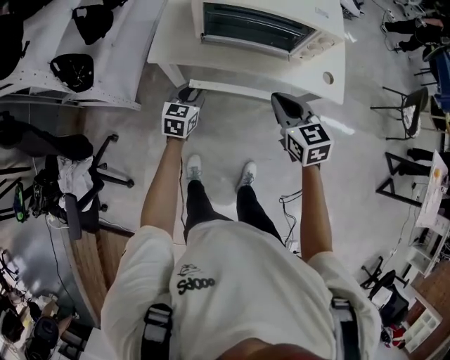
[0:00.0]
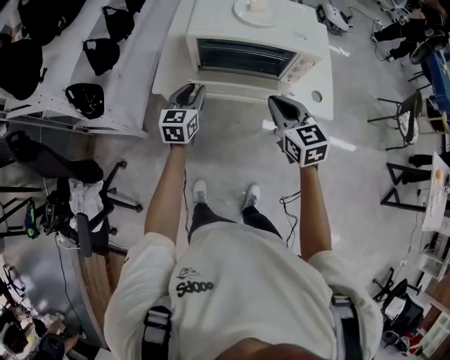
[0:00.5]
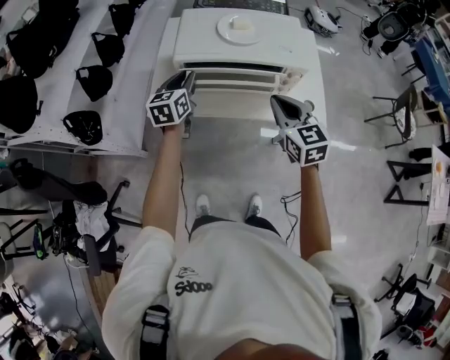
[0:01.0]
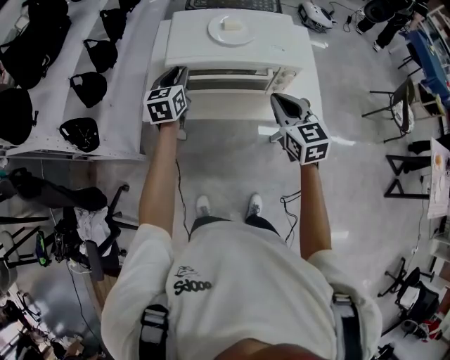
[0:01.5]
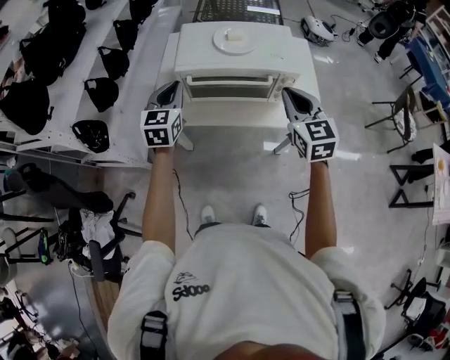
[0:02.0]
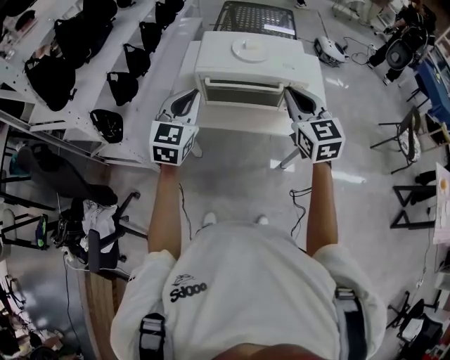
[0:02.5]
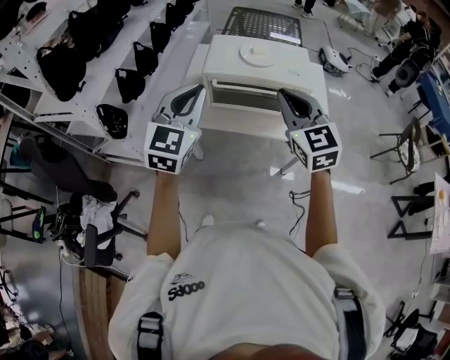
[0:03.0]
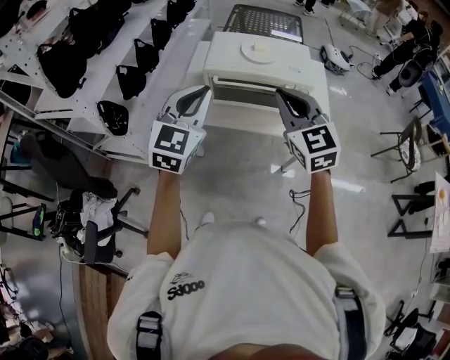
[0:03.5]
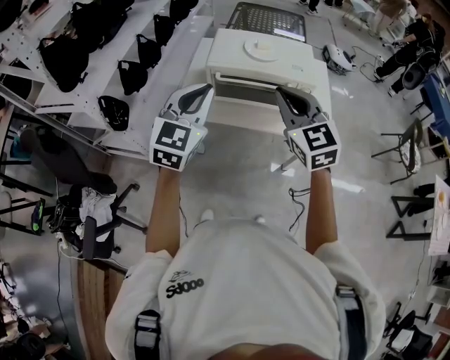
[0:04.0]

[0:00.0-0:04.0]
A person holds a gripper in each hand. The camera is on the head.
0:00.0 to 0:02.0: The left gripper shifts roughly 25 cm upward, turns by about 20 degrees, and closes; the right gripper shifts about 20 cm upward, to the right and forward, and swivels roughly 20 degrees.
0:02.0 to 0:04.0: The left gripper goes some 20 cm backward and upward. The right gripper travels to the left, upward and backward by about 15 cm.

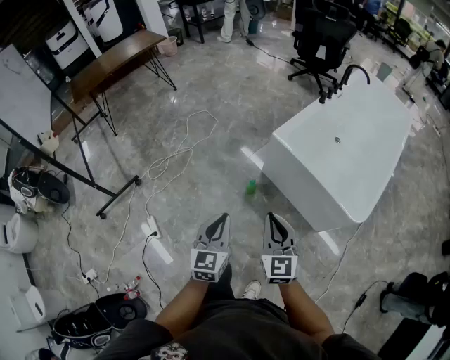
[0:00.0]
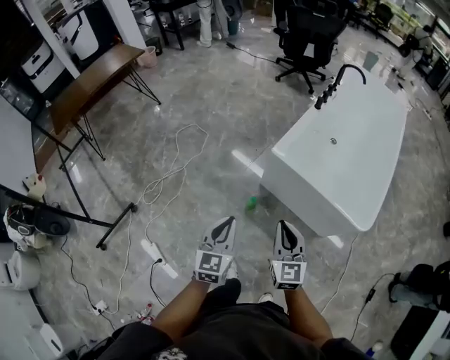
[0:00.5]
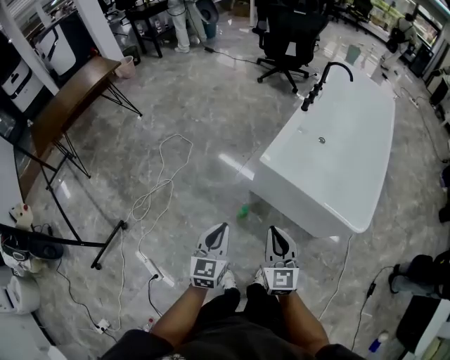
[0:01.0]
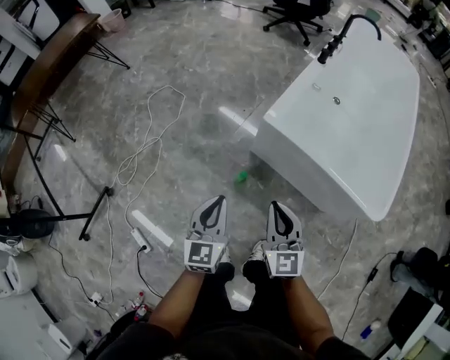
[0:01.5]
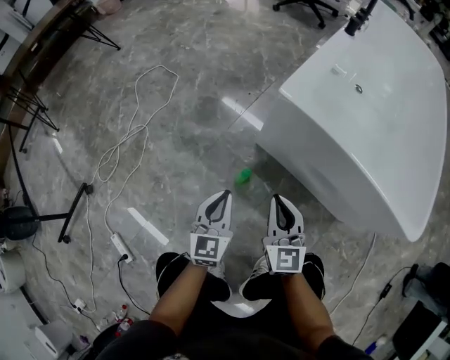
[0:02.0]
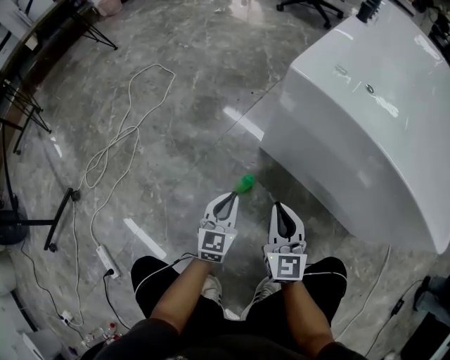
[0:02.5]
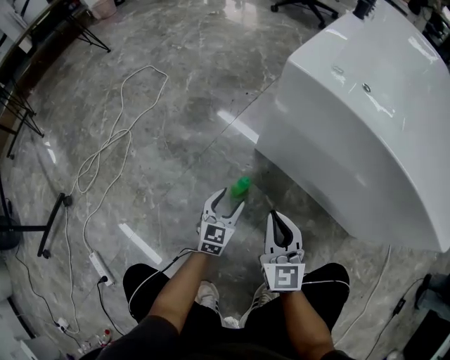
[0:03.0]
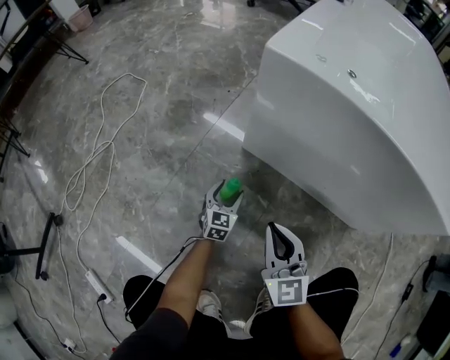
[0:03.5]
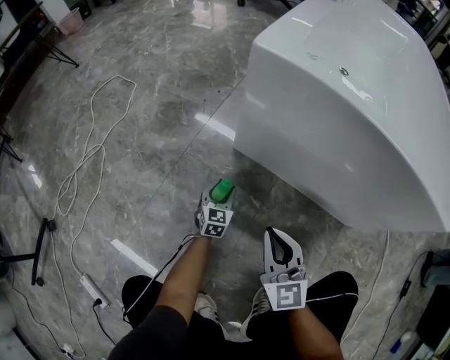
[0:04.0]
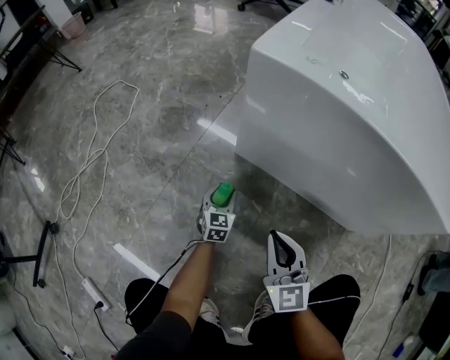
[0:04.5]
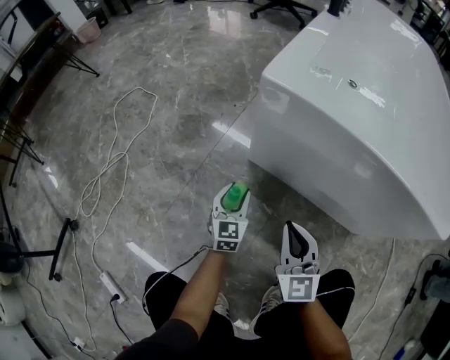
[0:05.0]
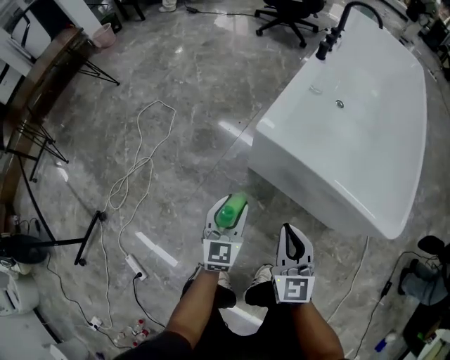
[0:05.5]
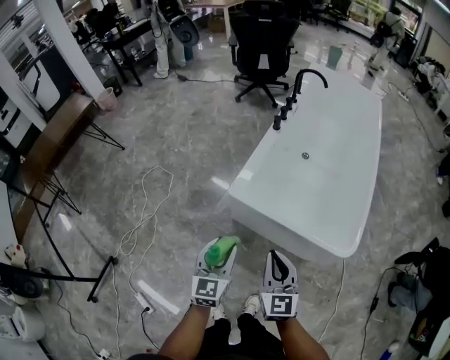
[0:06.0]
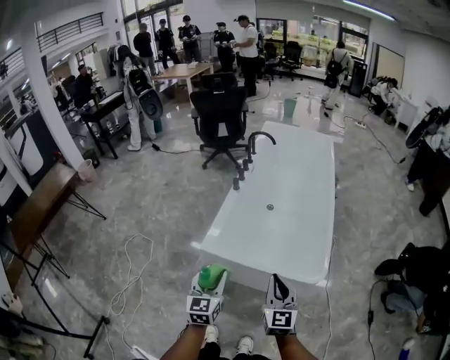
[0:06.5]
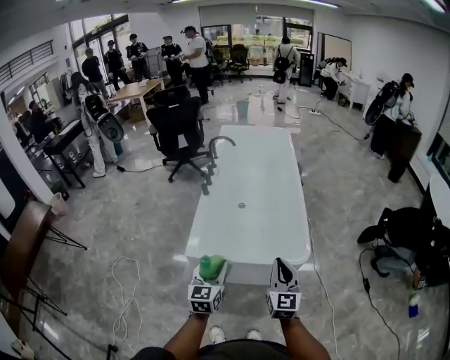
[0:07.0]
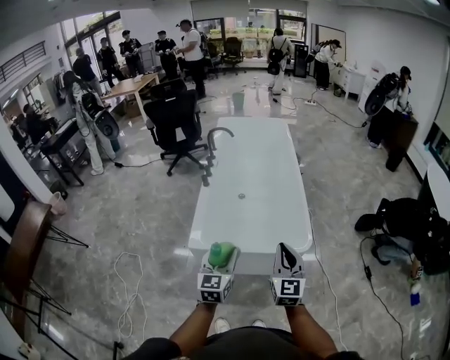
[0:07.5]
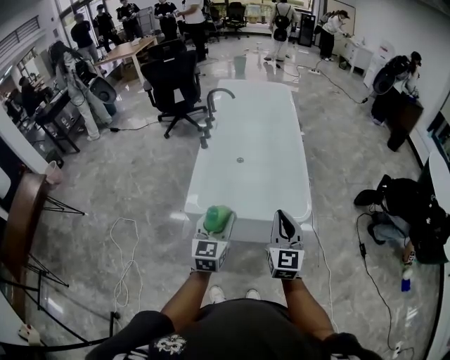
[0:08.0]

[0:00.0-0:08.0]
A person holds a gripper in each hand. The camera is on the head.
0:00.0 to 0:02.0: Both grippers travel together downward and forward, about 50 cm.
0:02.0 to 0:04.0: The right gripper shifts roughly 20 cm downward; the left gripper travels downward by some 40 cm, rotates about 20 degrees, and opens up.
0:04.0 to 0:06.0: Both grippers move upward, roughly 70 cm.
0:06.0 to 0:08.0: The right gripper moves roughly 20 cm, and turns by about 30 degrees. The left gripper shifts some 15 cm upward, and rotates roughly 20 degrees.

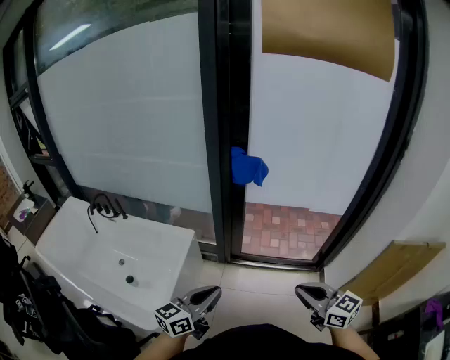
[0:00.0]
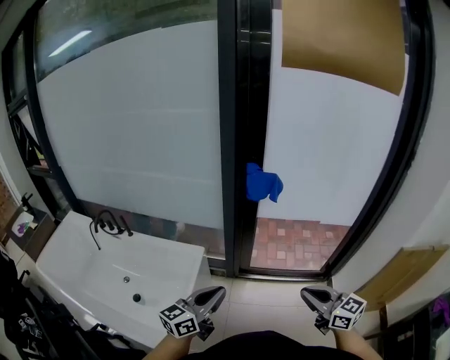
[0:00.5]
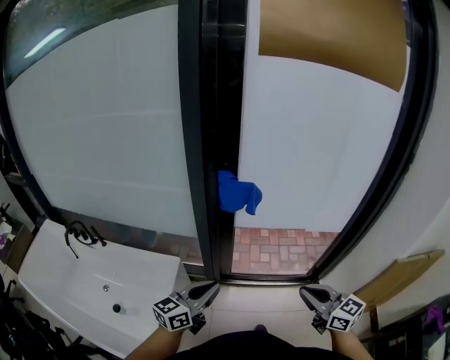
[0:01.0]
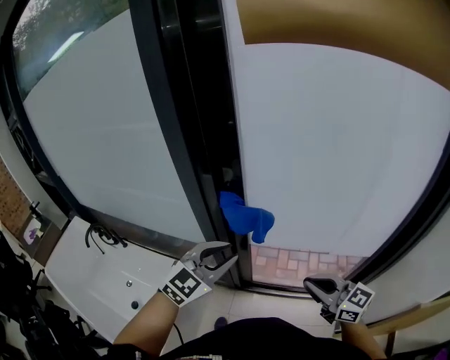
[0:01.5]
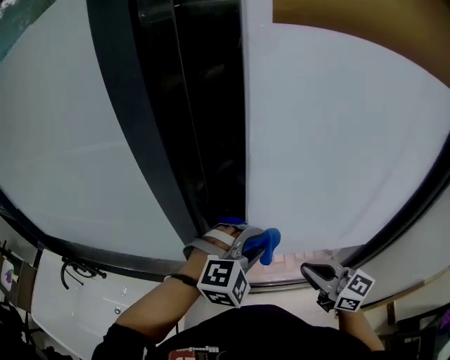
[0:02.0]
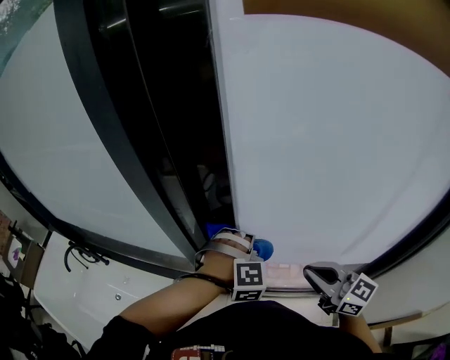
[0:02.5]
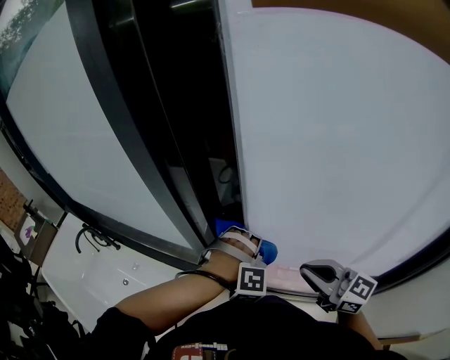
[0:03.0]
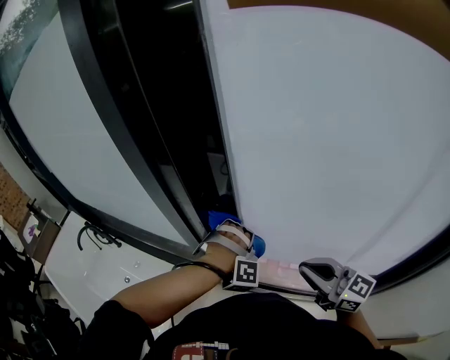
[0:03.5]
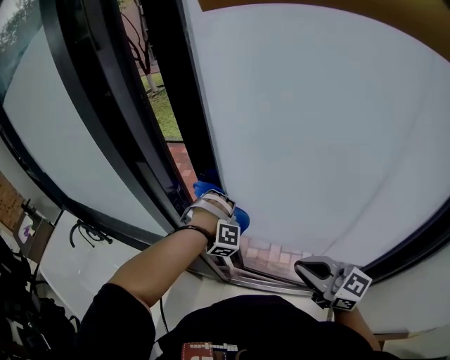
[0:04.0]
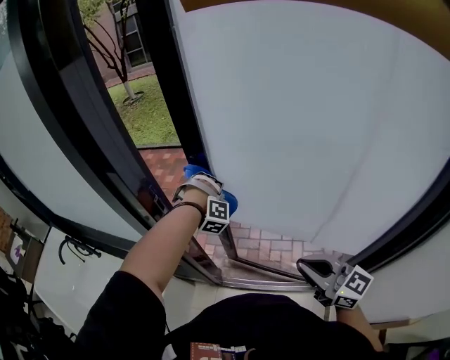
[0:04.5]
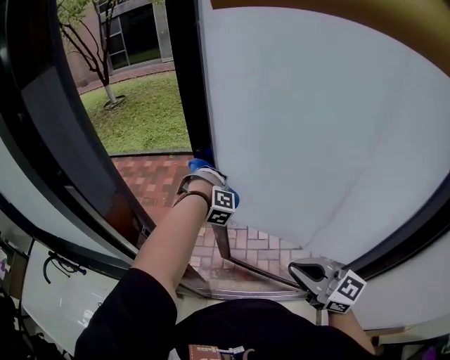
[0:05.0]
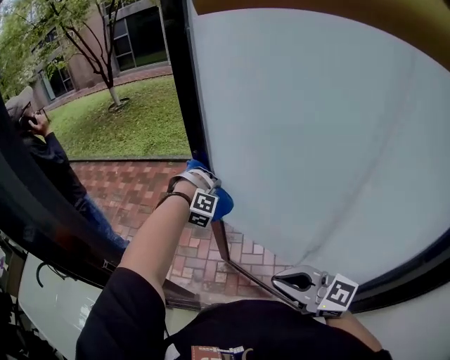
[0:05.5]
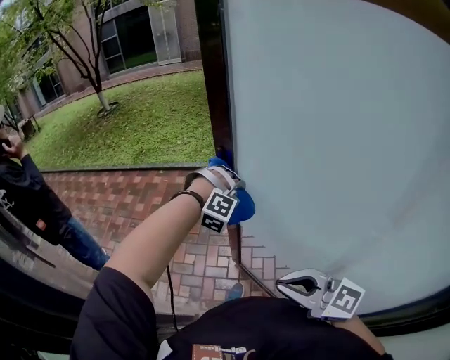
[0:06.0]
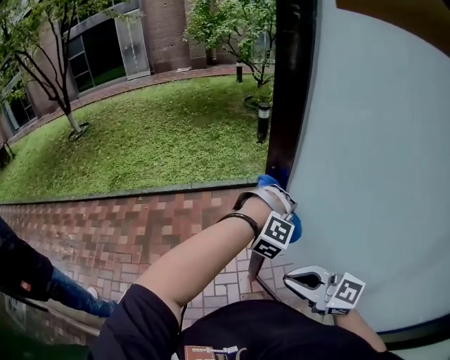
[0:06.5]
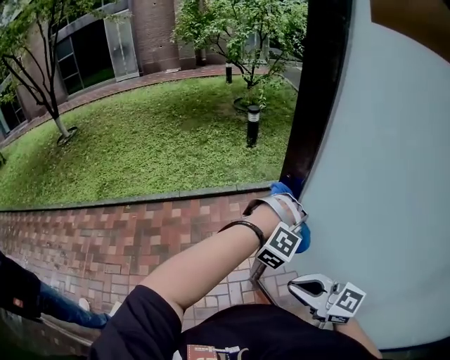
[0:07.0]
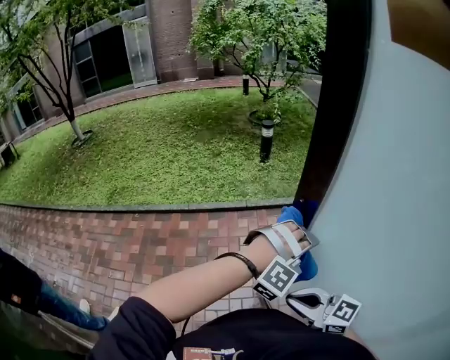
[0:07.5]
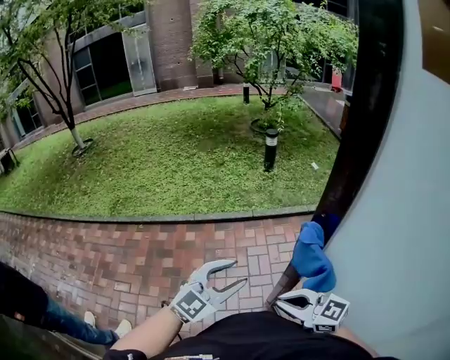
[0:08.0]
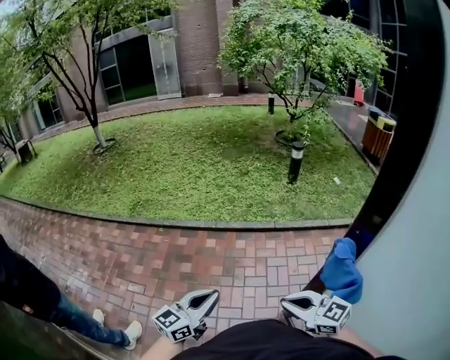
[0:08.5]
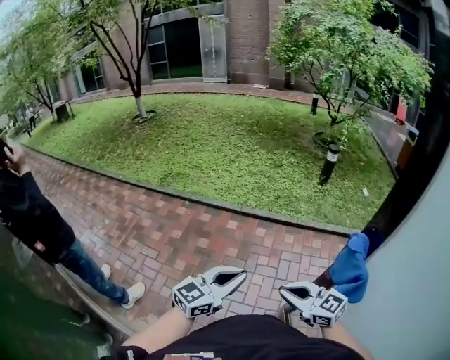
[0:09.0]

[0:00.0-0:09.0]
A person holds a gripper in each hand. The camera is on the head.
0:00.0 to 0:02.0: The two grippers travel together, forward, about 50 cm. The left gripper rotates around the line of its fingers by some 90 degrees, clockwise from behind, and opens.
0:02.0 to 0:04.5: The left gripper shifts by roughly 30 cm, rotates approximately 60 degrees, and closes up. The right gripper changes place by about 15 cm.
0:04.5 to 0:07.0: The pair of grippers is taken about 60 cm. The left gripper rotates some 60 degrees.
0:07.0 to 0:09.0: The right gripper shifts about 20 cm to the left, forward and downward, and swivels some 20 degrees. Meanwhile the left gripper heads to the left, covering about 35 cm, twists about 110 degrees counterclockwise, seen from behind, and opens, then closes again.

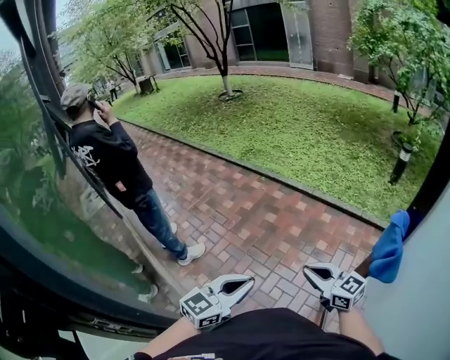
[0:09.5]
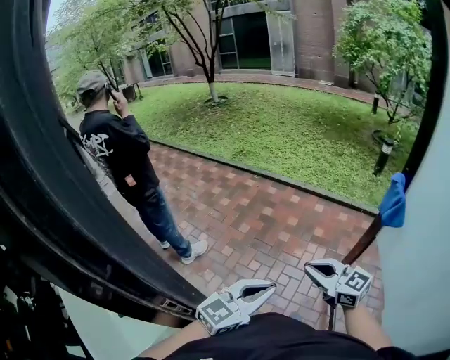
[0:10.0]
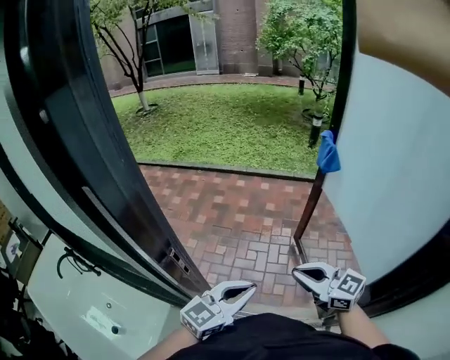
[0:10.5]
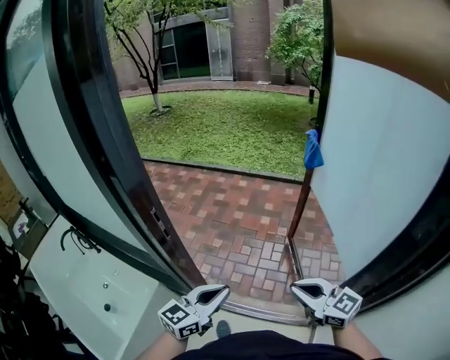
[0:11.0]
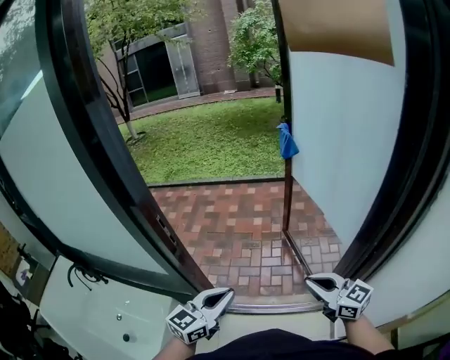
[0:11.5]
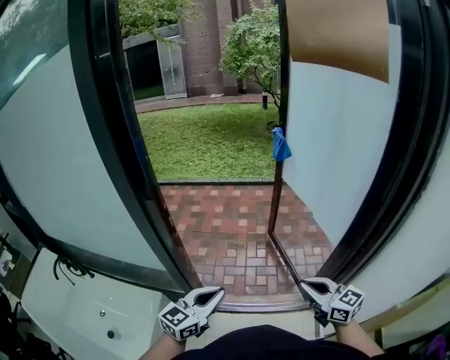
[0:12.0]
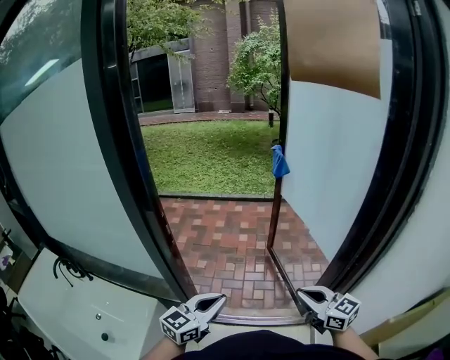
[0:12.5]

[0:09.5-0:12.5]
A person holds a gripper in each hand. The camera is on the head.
0:09.5 to 0:11.0: The two grippers travel together, backward, about 50 cm.
0:11.0 to 0:12.5: Both grippers move backward, approximately 10 cm.

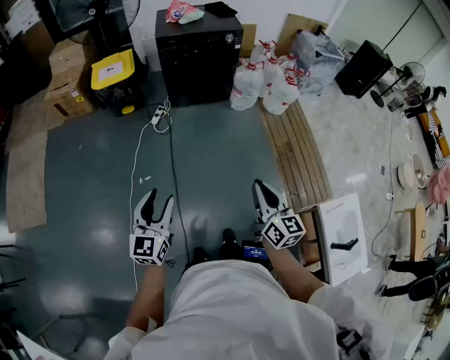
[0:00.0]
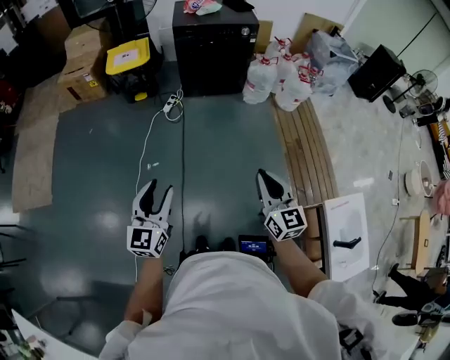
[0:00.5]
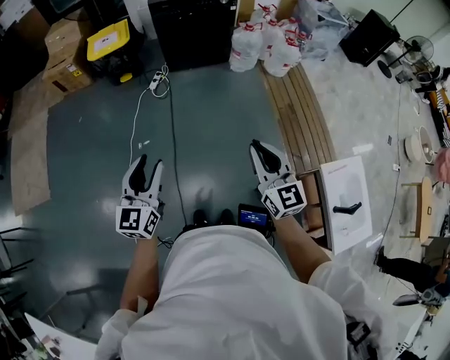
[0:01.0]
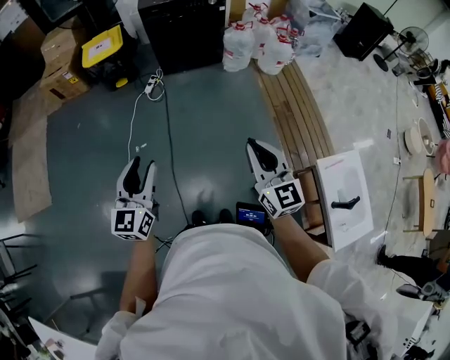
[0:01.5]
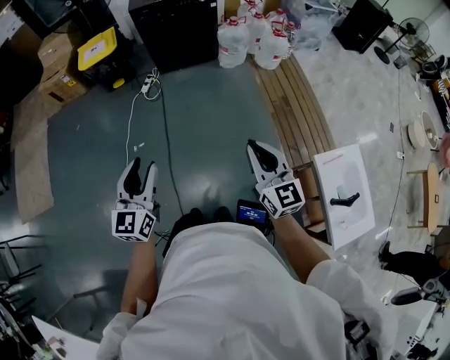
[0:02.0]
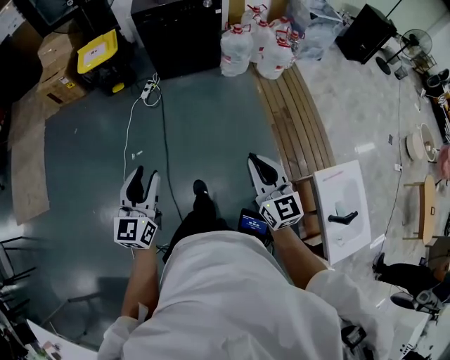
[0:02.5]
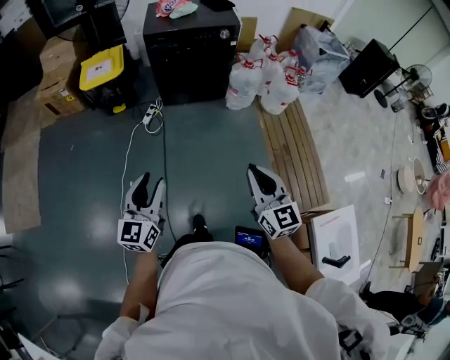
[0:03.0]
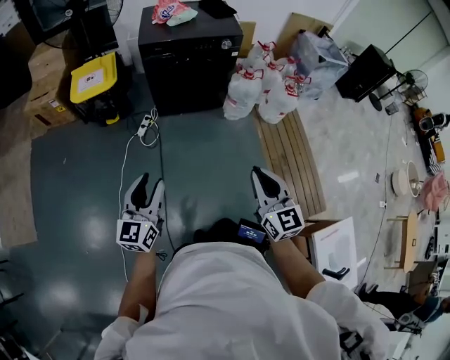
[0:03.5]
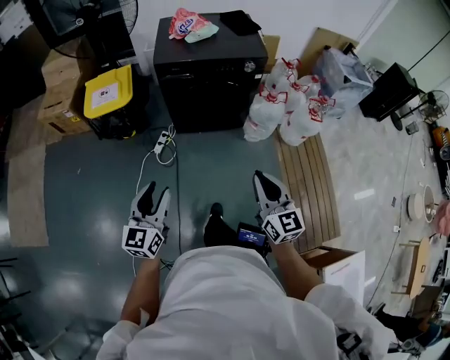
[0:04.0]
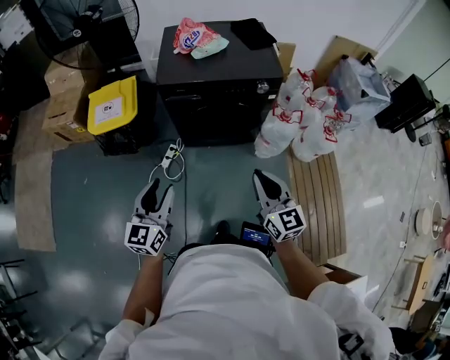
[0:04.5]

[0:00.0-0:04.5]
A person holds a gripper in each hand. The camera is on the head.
0:00.0 to 0:02.0: Both grippers travel together to the right and backward, about 15 cm.
0:02.0 to 0:04.5: The pair of grippers is taken forward, about 70 cm.
